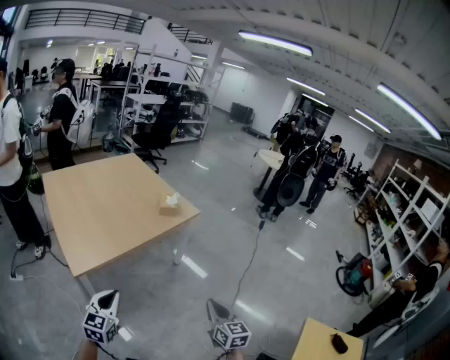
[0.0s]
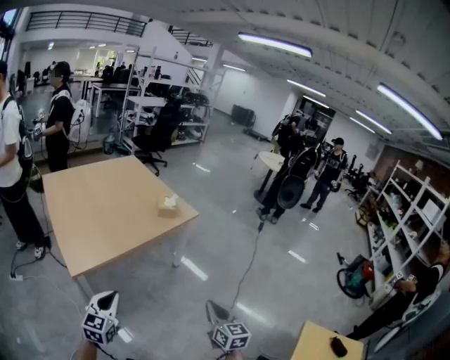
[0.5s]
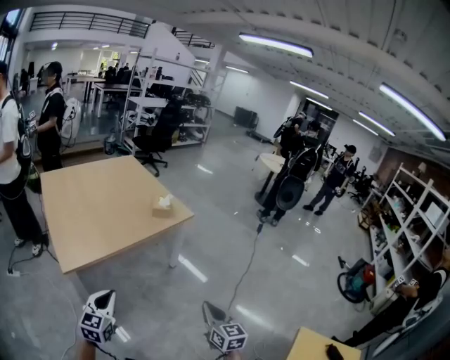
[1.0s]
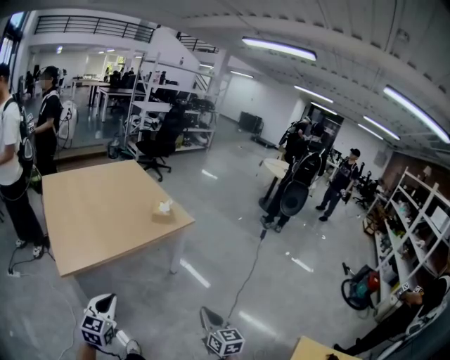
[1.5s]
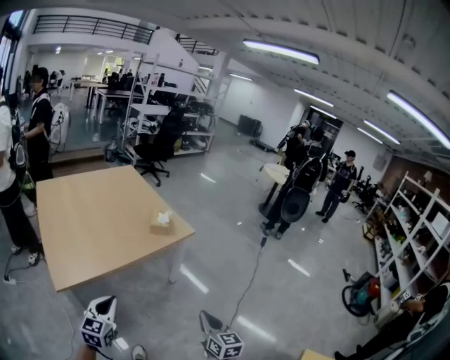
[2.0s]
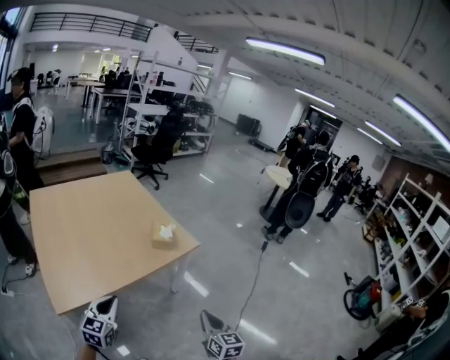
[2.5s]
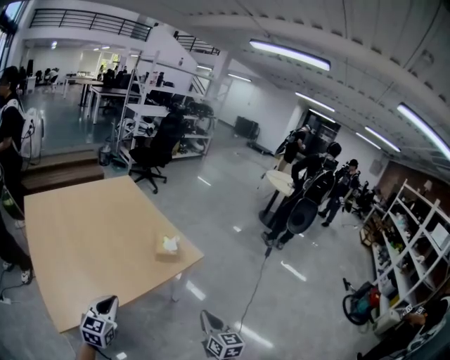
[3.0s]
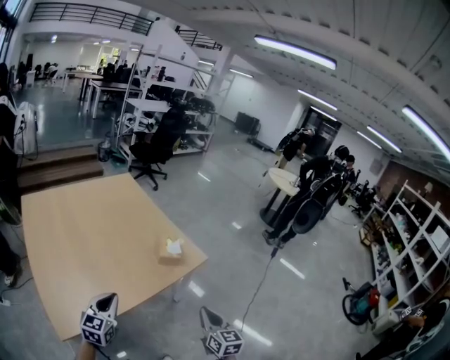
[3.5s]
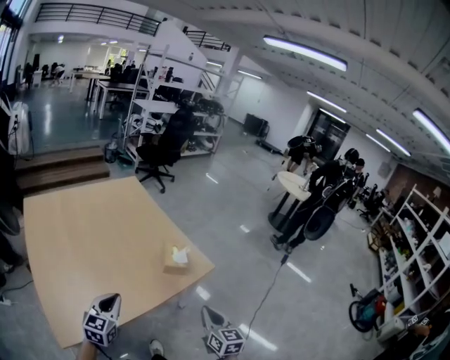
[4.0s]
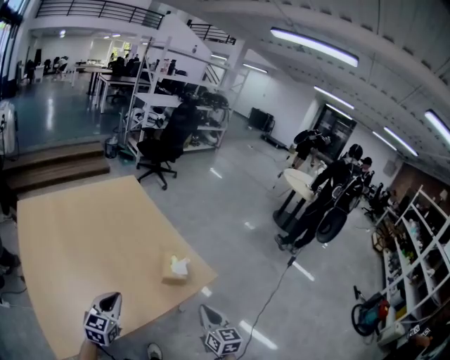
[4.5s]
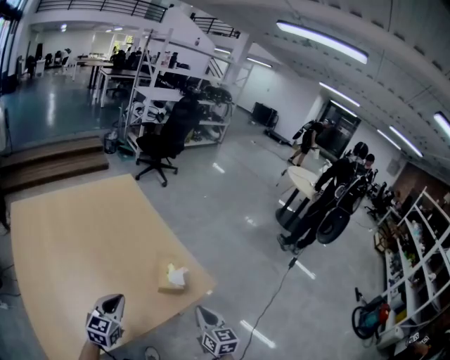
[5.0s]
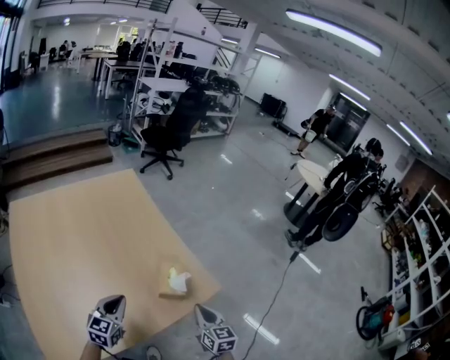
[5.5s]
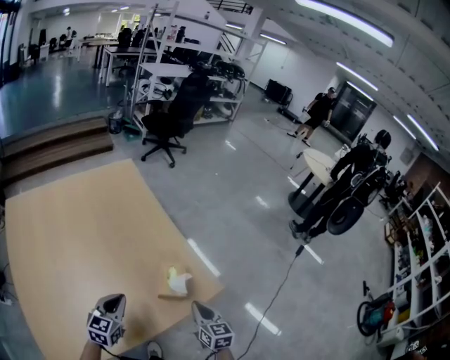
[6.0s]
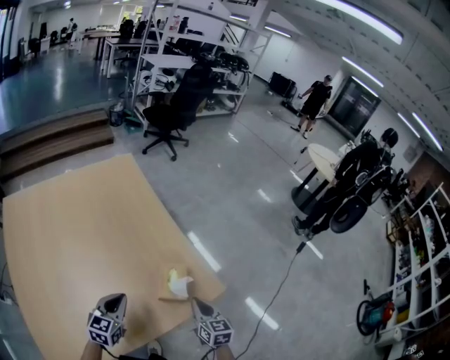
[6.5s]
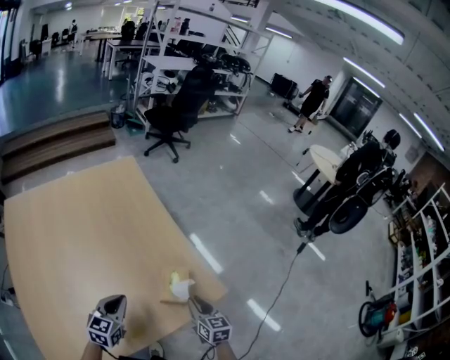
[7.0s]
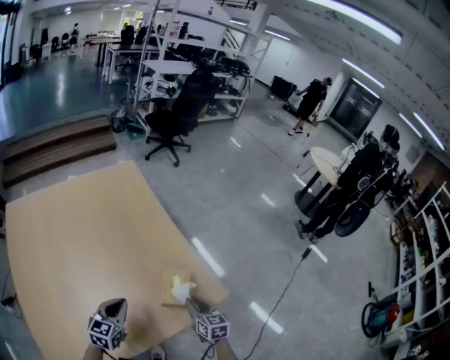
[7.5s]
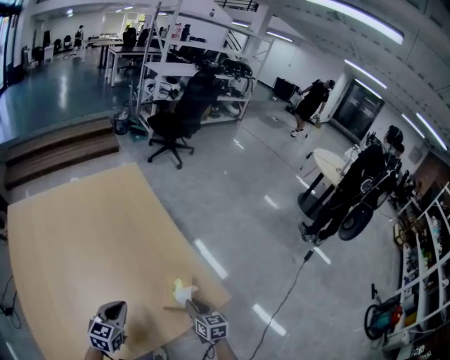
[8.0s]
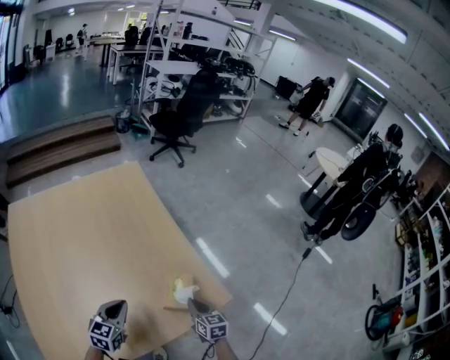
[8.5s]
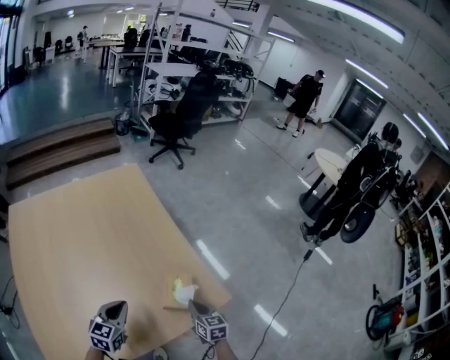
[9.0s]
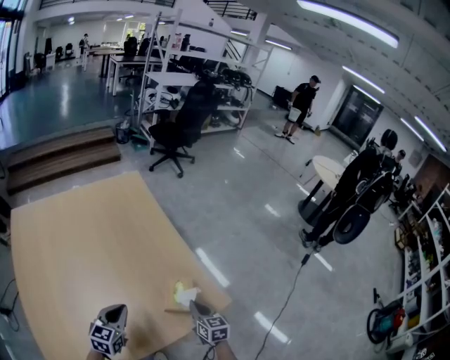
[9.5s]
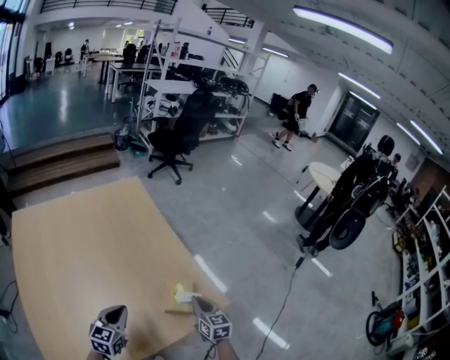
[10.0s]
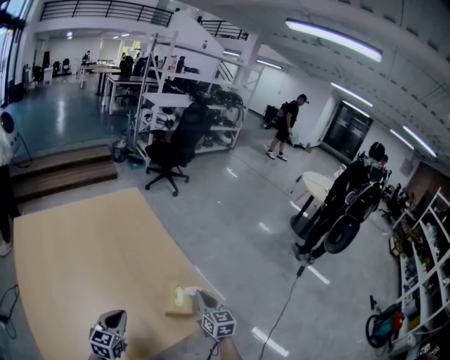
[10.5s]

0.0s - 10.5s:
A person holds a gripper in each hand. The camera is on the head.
0.0s - 2.0s: The two grippers go roughly 10 cm forward and to the right.
2.0s - 4.0s: The grippers both shift forward by some 25 cm.
4.0s - 6.5s: The left gripper shifts about 20 cm forward, while the right gripper shifts roughly 25 cm forward and downward.
6.5s - 8.5s: The right gripper travels downward by some 5 cm.
8.5s - 10.5s: The right gripper heads upward, covering approximately 15 cm.

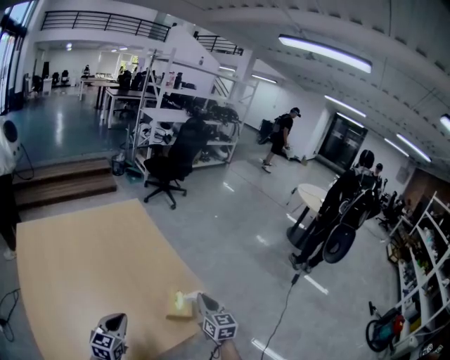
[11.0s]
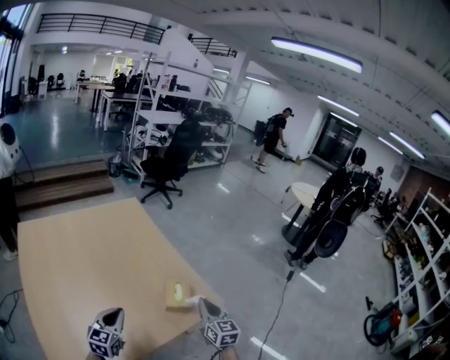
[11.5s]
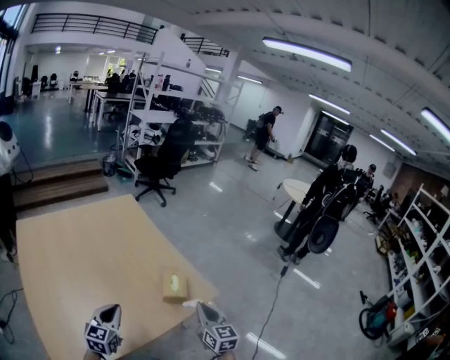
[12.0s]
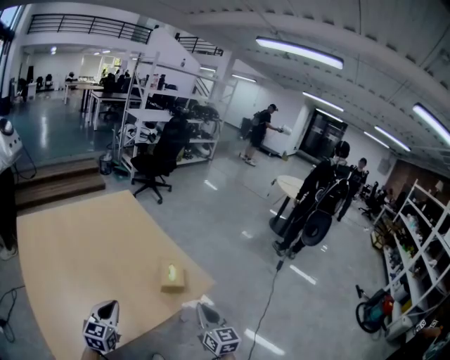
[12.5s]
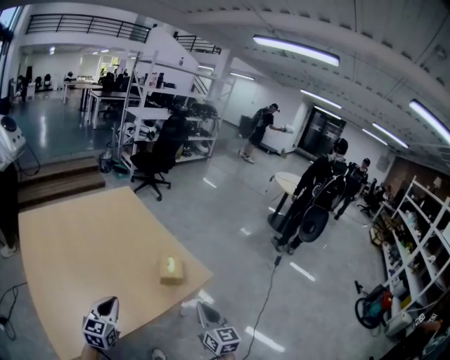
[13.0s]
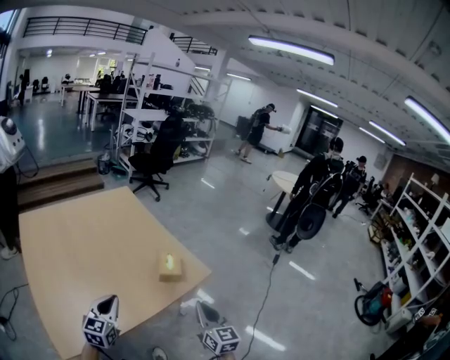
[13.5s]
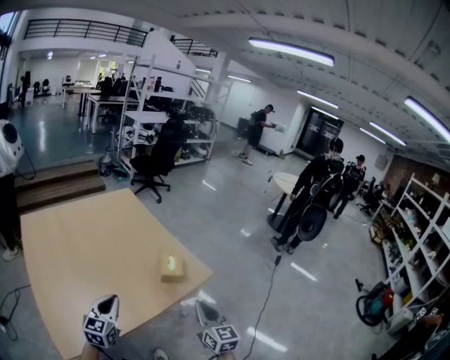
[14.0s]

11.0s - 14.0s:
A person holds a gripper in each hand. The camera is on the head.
11.0s - 12.5s: The left gripper moves backward, roughly 10 cm. The right gripper shifts approximately 20 cm backward.
12.5s - 14.0s: The right gripper is displaced backward by some 5 cm.

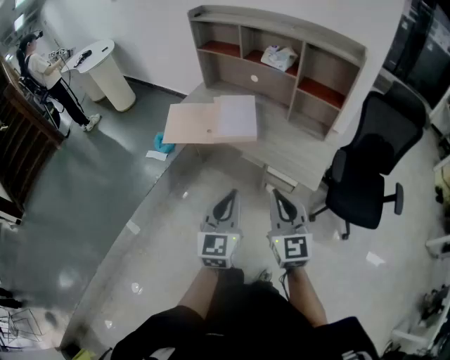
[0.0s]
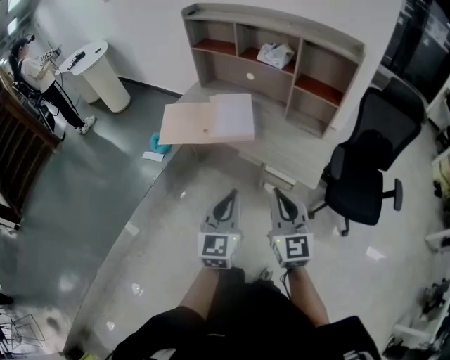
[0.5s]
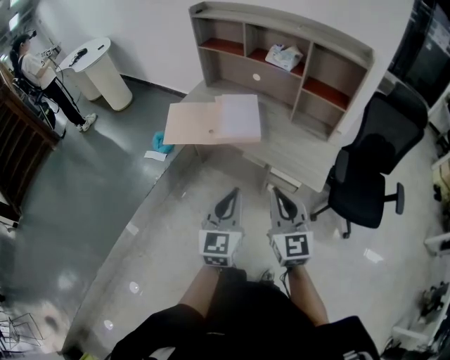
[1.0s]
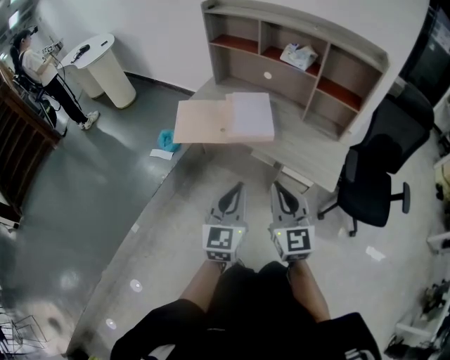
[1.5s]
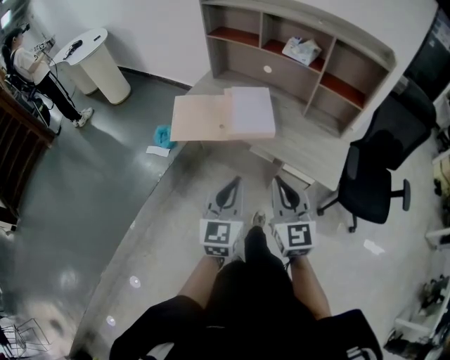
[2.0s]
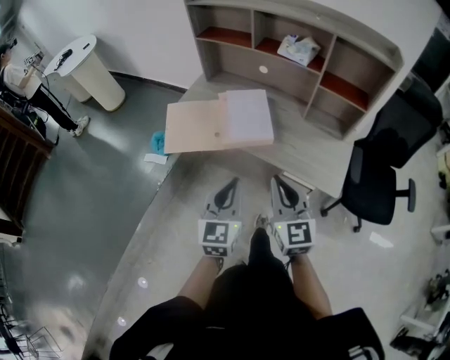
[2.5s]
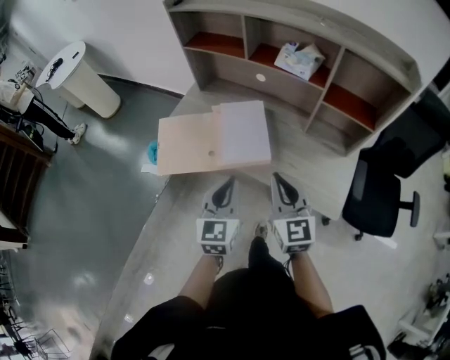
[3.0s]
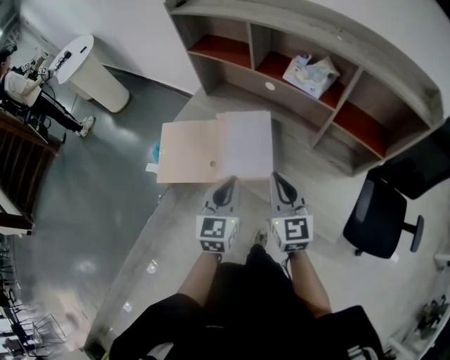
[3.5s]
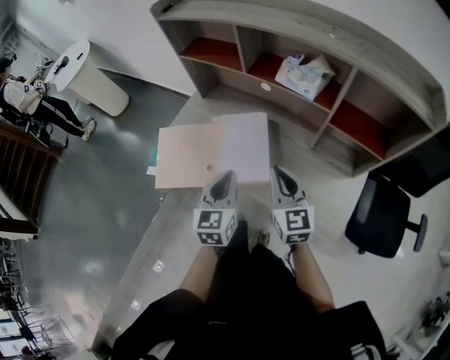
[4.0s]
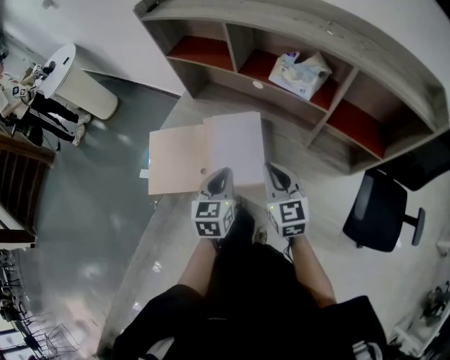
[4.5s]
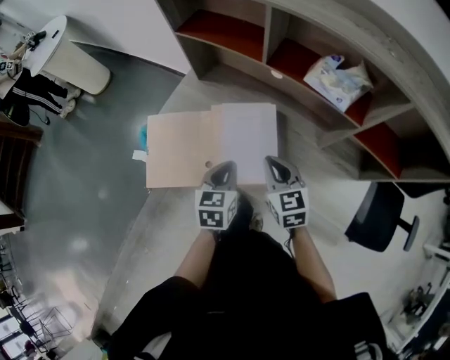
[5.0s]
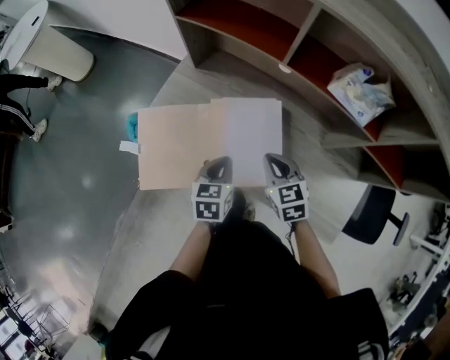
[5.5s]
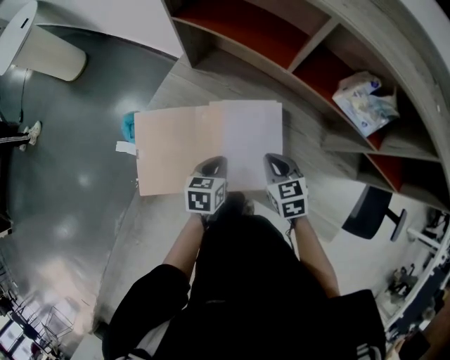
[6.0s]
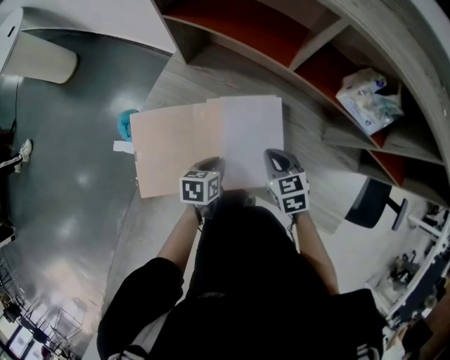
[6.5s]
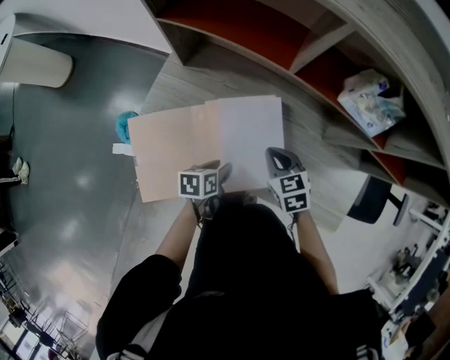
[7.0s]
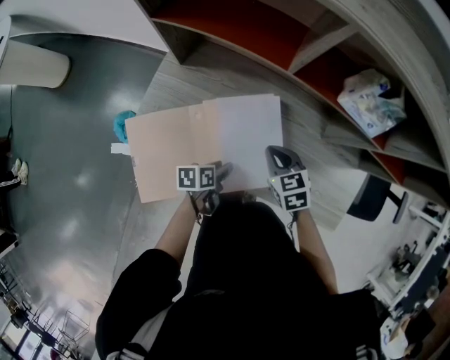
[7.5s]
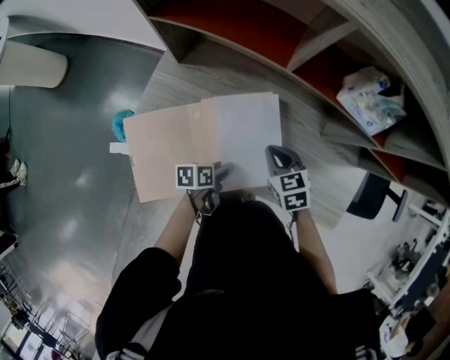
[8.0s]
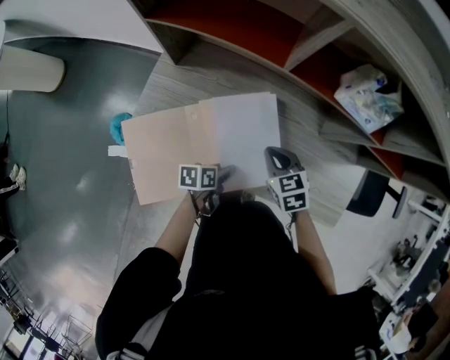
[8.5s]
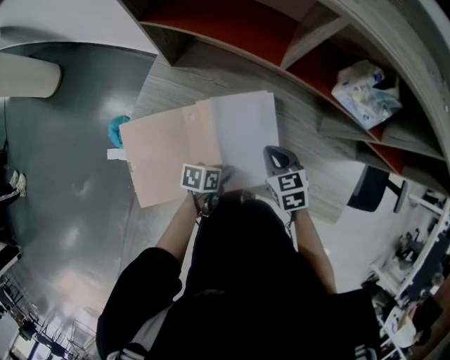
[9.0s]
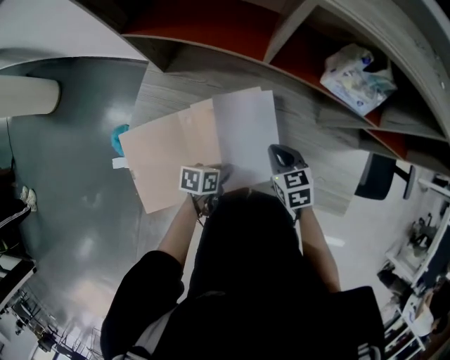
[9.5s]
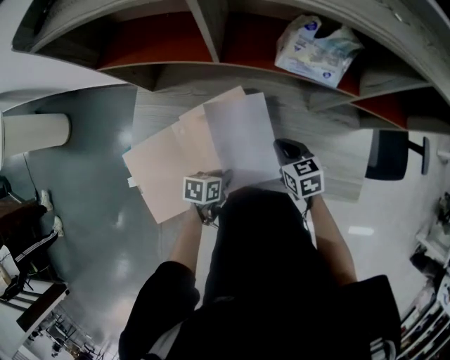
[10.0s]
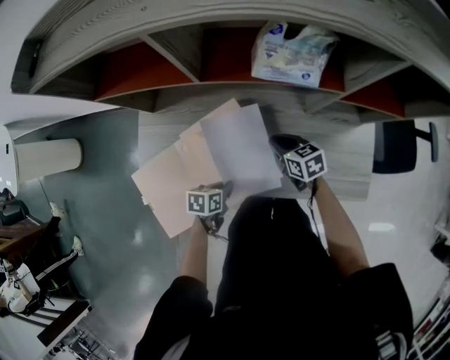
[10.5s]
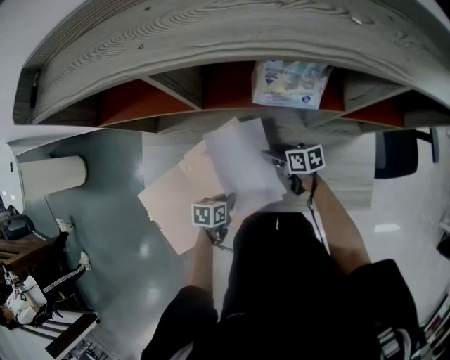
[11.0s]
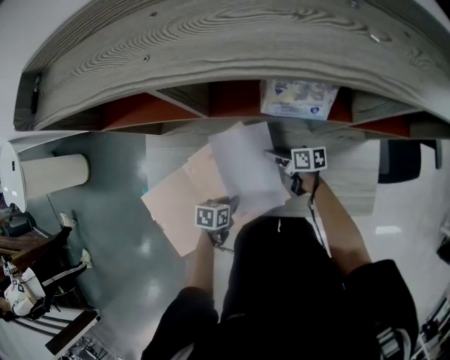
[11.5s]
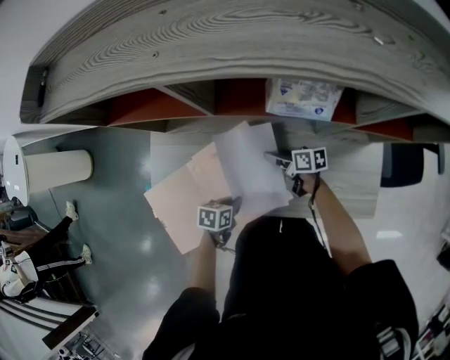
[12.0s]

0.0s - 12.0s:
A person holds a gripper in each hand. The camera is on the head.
0.0s - 2.0s: Both grippers travel together to the left and forward, some 15 cm.
2.0s - 4.0s: The two grippers go roughly 30 cm forward.
4.0s - 6.0s: Both grippers move downward, forward and to the left, about 25 cm. The left gripper swivels about 40 degrees, while the right gripper points its fingers roughly 30 degrees further downward.
6.0s - 8.0s: The left gripper is displaced downward by roughly 10 cm, changes its angle by about 40 degrees, and opens.
8.0s - 10.0s: The left gripper turns by roughly 30 degrees, and closes; the right gripper goes about 10 cm to the right.
10.0s - 12.0s: The right gripper heads downward, covering about 10 cm, turns by some 50 degrees, and opens its fingers.

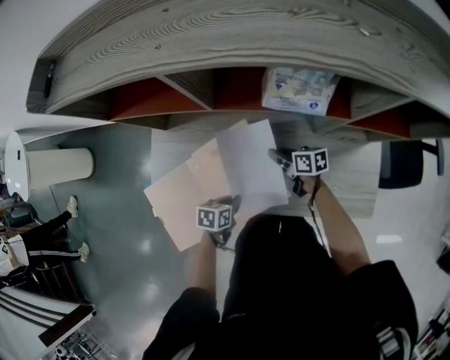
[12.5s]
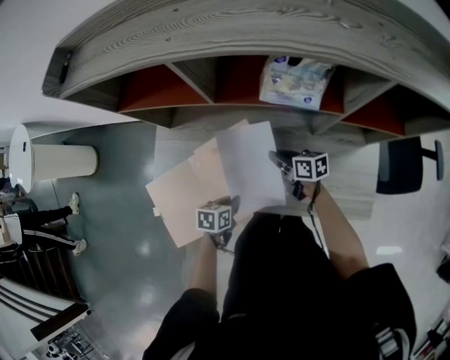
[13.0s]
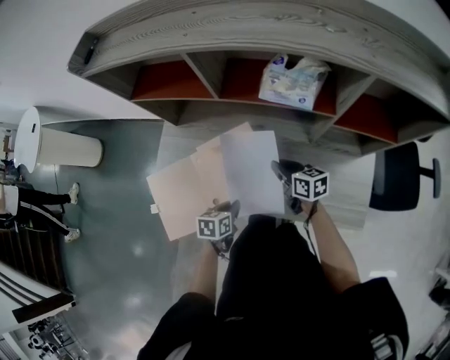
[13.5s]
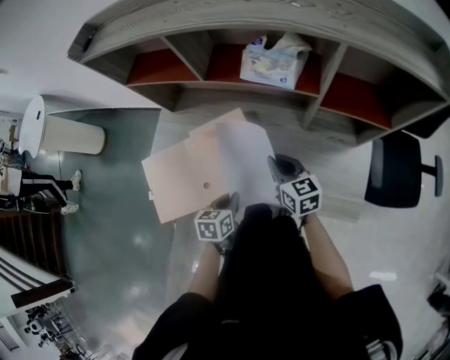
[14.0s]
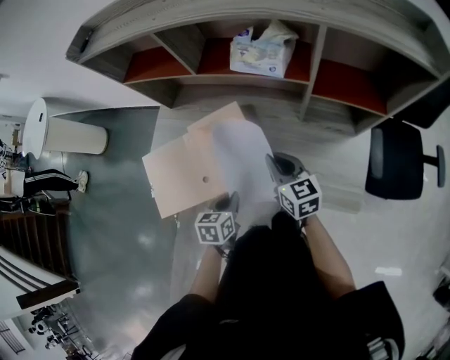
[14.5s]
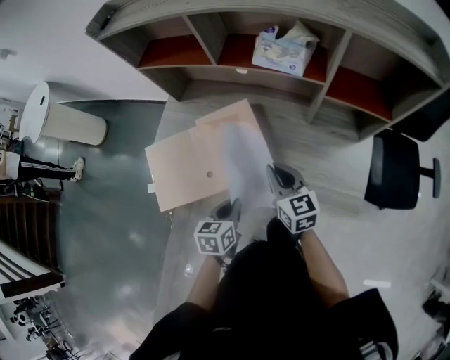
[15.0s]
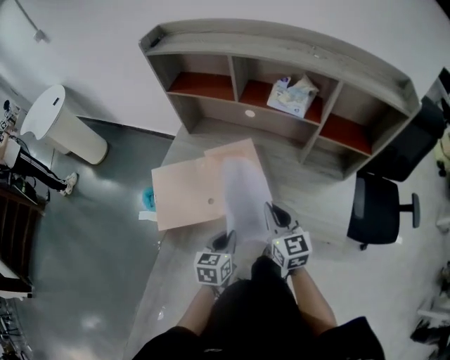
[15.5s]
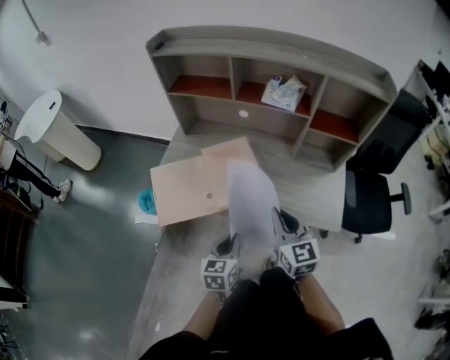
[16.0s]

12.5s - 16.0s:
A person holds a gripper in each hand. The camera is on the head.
12.5s - 14.5s: The right gripper heads upward and backward, covering approximately 20 cm, and changes its angle by some 40 degrees; the left gripper moves upward, backward and to the right, approximately 15 cm, and rotates about 30 degrees.
14.5s - 16.0s: The two grippers go some 20 cm backward and upward. The right gripper turns by some 20 degrees.
